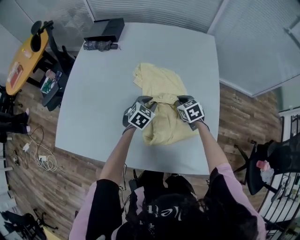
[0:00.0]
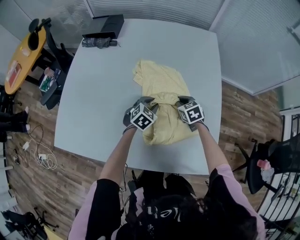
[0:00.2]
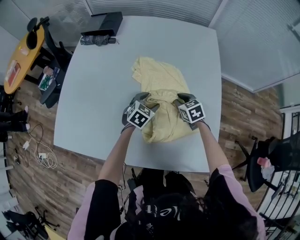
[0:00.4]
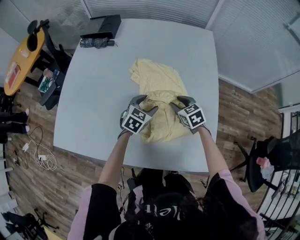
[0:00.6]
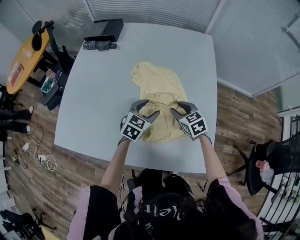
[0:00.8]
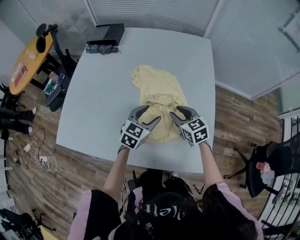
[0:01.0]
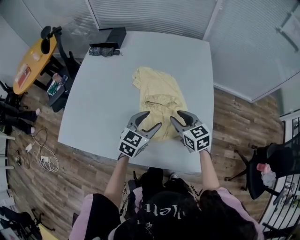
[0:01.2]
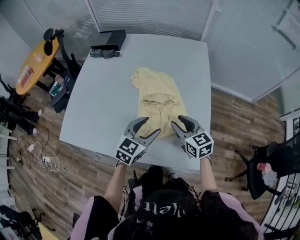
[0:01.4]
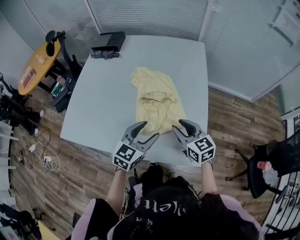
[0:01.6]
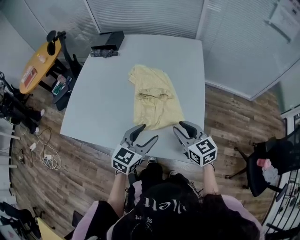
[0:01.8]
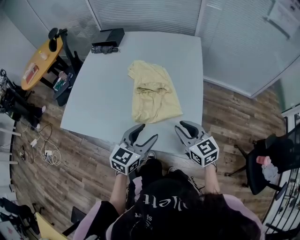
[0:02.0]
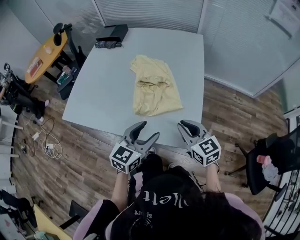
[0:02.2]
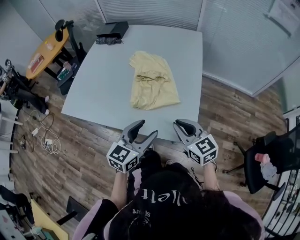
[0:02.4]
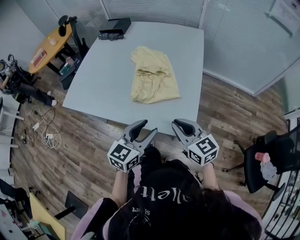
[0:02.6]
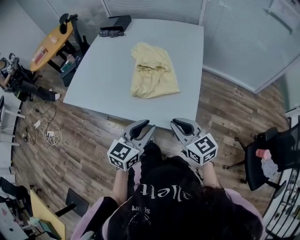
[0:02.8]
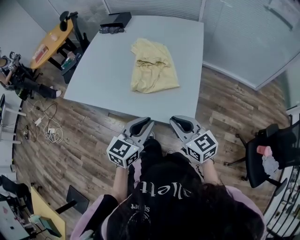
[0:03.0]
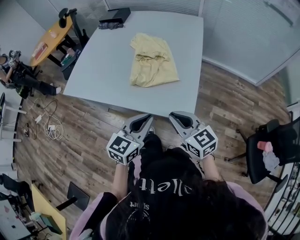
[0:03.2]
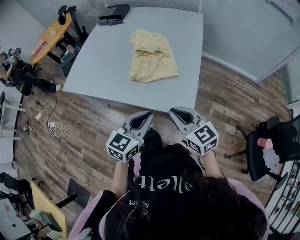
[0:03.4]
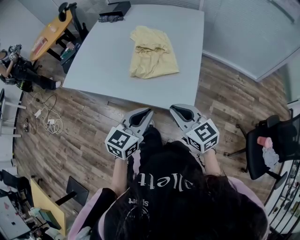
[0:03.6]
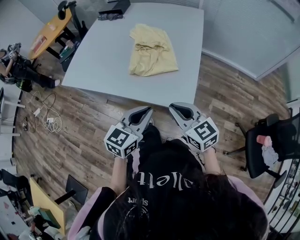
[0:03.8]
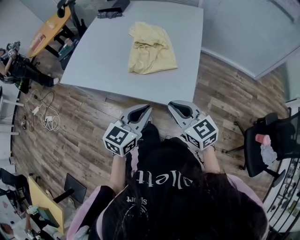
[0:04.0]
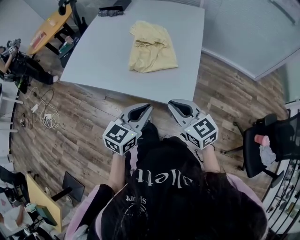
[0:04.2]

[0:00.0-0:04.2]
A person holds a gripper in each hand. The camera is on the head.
0:00.0 to 0:01.4: The grippers both shift backward and upward by about 20 cm. The left gripper swivels about 20 degrees, and opens its fingers; the right gripper changes its angle by some 30 degrees, and opens up.
0:01.4 to 0:02.8: The two grippers go about 25 cm backward. The right gripper closes. The left gripper closes up.
0:02.8 to 0:04.2: There are only small adjustments of the grippers.

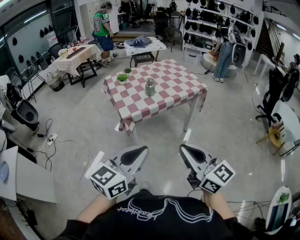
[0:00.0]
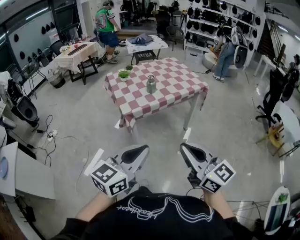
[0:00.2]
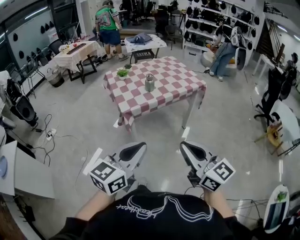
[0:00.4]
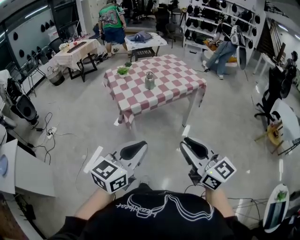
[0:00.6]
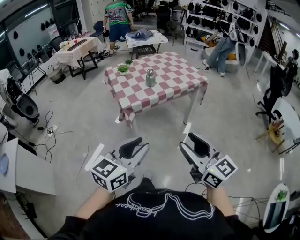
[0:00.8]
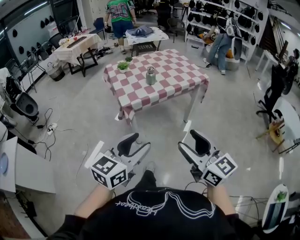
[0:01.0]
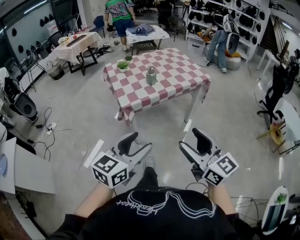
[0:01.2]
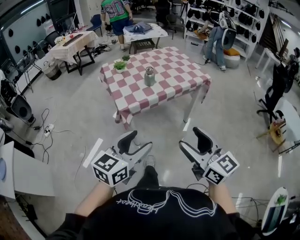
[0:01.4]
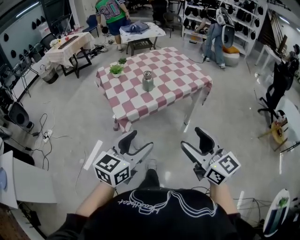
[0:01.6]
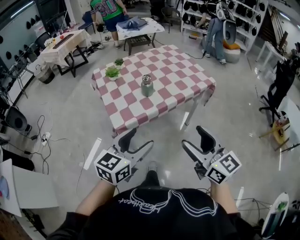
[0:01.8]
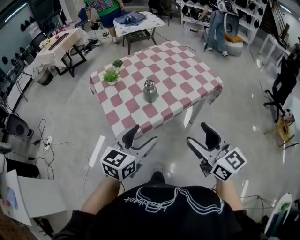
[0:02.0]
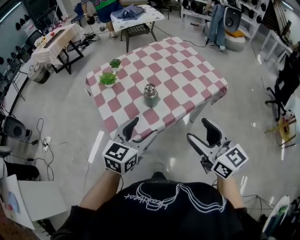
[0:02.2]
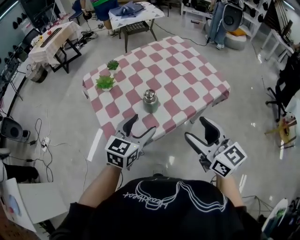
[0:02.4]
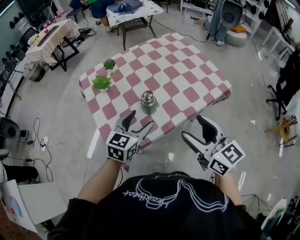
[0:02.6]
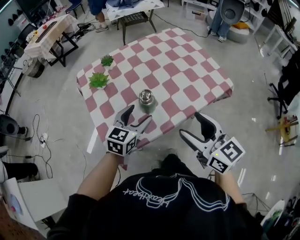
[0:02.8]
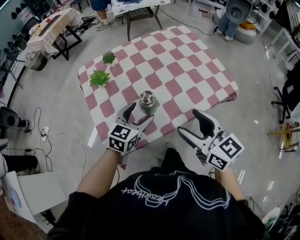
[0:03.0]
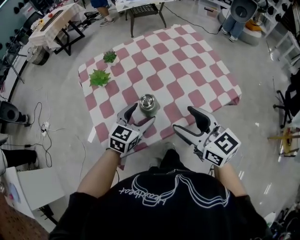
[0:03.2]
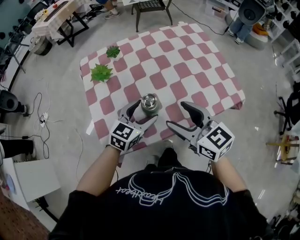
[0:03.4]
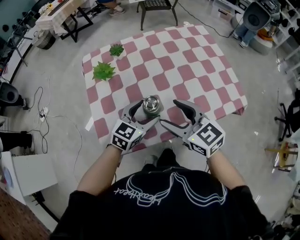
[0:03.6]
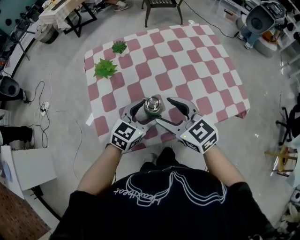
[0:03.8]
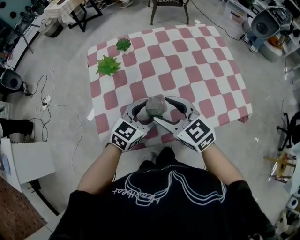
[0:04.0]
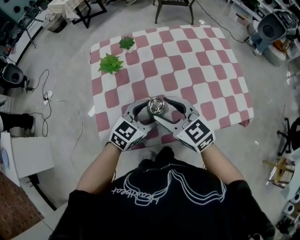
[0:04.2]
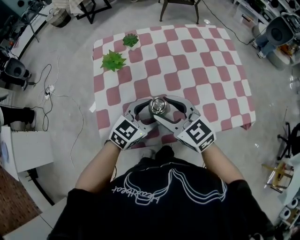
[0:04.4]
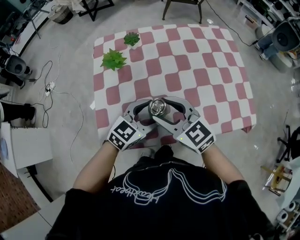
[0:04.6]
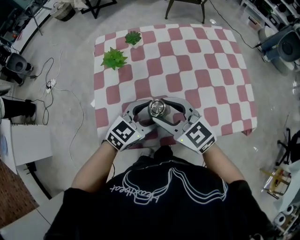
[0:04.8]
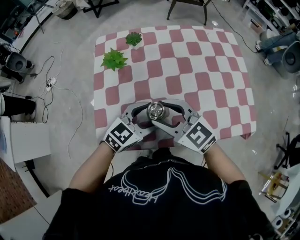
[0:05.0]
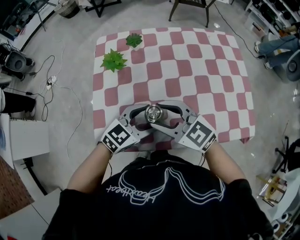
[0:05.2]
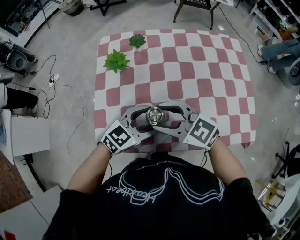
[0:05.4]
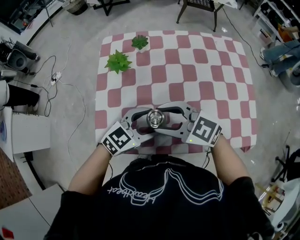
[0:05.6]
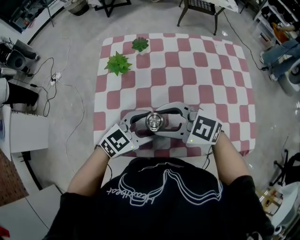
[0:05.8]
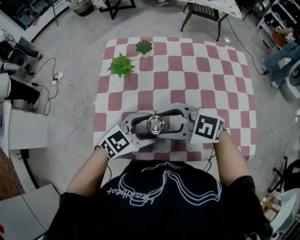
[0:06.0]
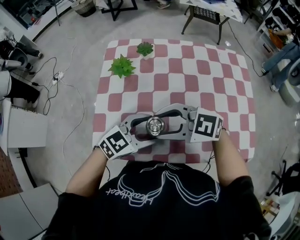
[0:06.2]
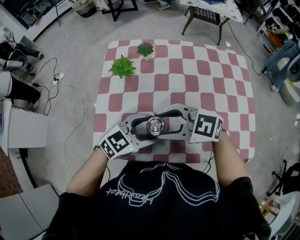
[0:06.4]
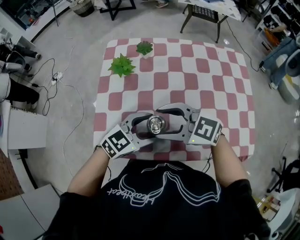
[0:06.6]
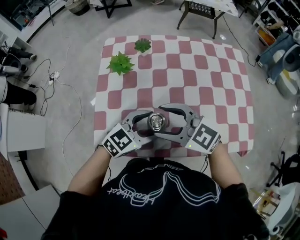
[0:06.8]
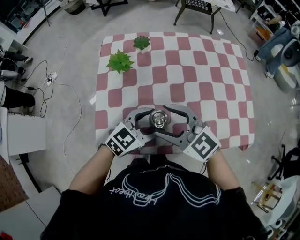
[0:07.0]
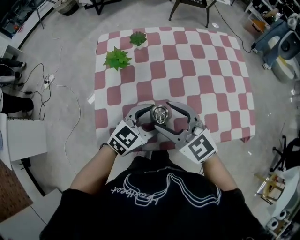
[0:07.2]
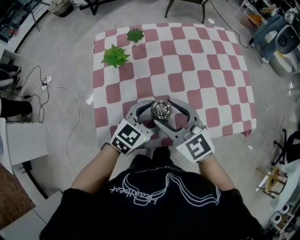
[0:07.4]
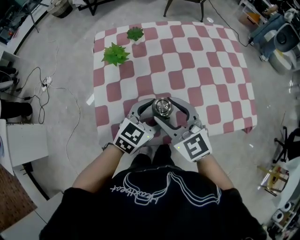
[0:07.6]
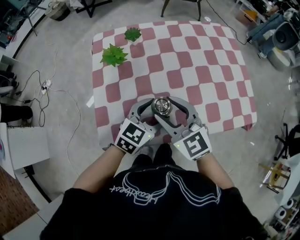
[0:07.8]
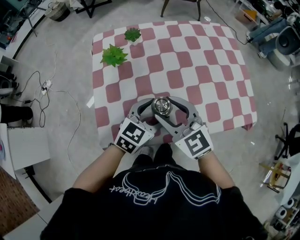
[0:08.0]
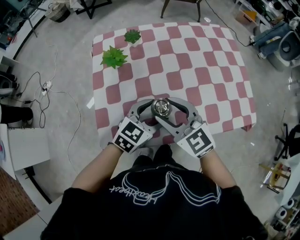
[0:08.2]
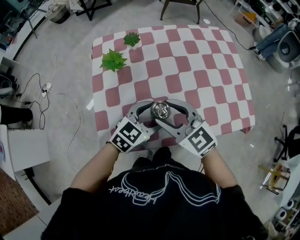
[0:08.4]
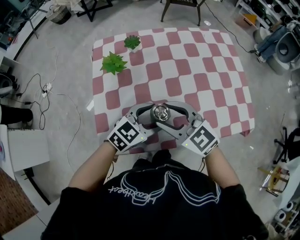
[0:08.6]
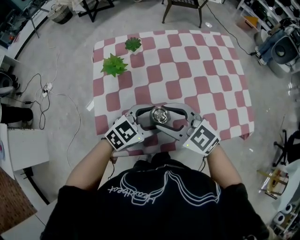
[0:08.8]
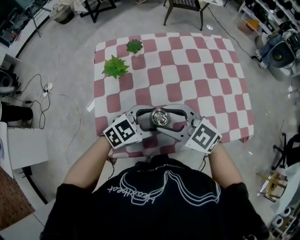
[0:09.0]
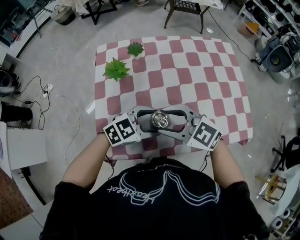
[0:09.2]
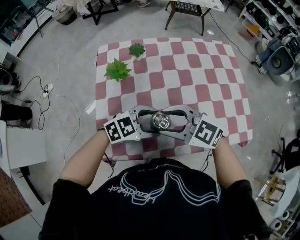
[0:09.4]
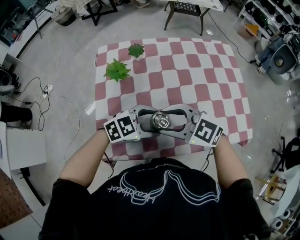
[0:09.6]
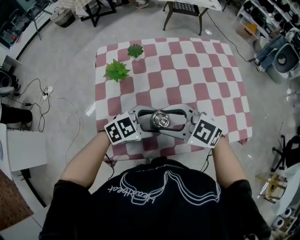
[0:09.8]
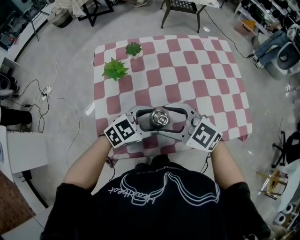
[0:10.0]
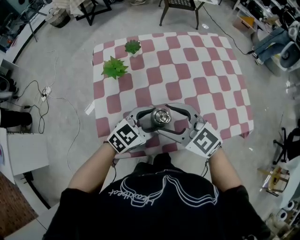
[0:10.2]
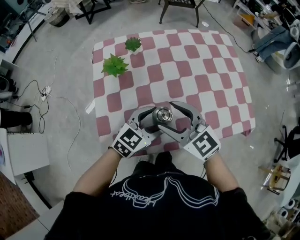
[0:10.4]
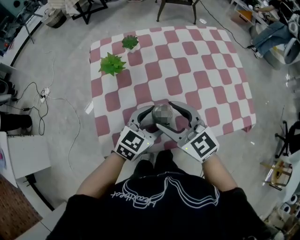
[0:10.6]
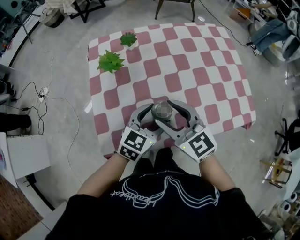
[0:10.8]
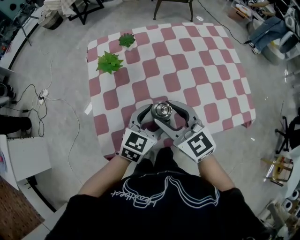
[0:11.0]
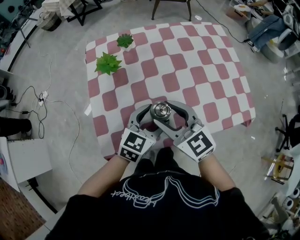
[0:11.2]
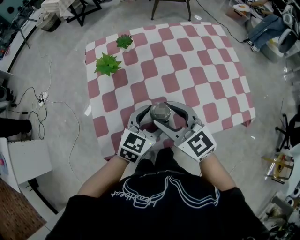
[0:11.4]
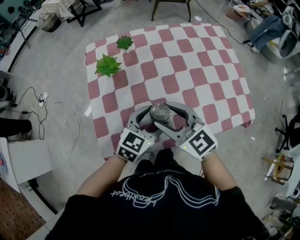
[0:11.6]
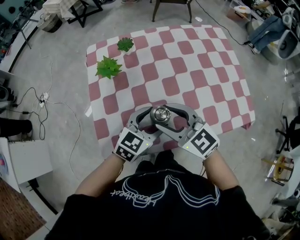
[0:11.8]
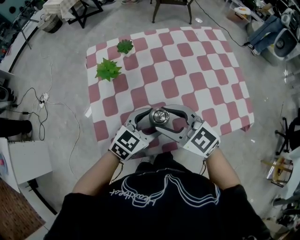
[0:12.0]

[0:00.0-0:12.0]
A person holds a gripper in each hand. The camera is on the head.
0:00.0 to 0:01.6: The left gripper moves forward and downward, some 15 cm, and opens up; the right gripper goes roughly 10 cm forward, and opens its fingers.
0:01.6 to 0:03.0: Both grippers move forward, approximately 40 cm.
0:03.0 to 0:04.4: The right gripper is displaced forward, to the left and downward by about 20 cm, and rotates about 30 degrees.
0:04.4 to 0:06.0: The right gripper changes its angle by about 50 degrees.
0:06.0 to 0:07.6: The right gripper turns by some 50 degrees.
0:07.6 to 0:09.0: The right gripper turns by some 20 degrees. Meanwhile the left gripper changes its angle by roughly 20 degrees.
0:09.0 to 0:10.4: The grippers make only small movements.
0:10.4 to 0:12.0: The grippers make only small movements.

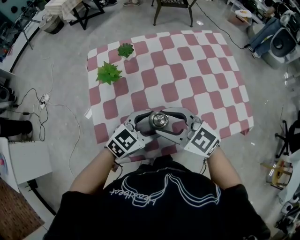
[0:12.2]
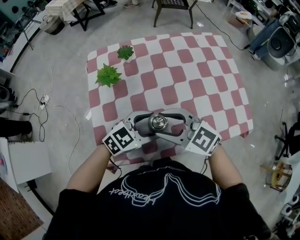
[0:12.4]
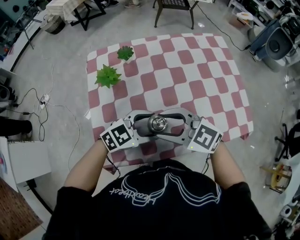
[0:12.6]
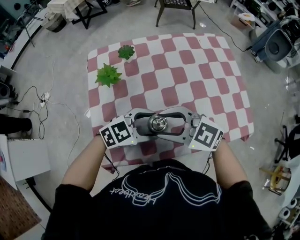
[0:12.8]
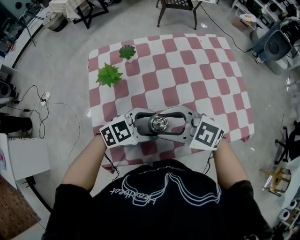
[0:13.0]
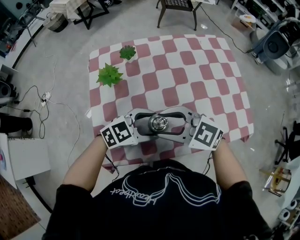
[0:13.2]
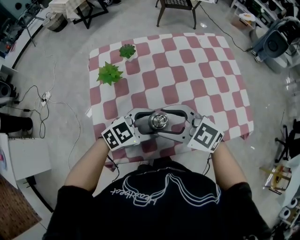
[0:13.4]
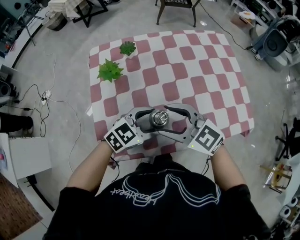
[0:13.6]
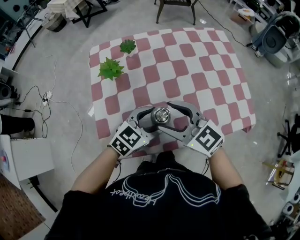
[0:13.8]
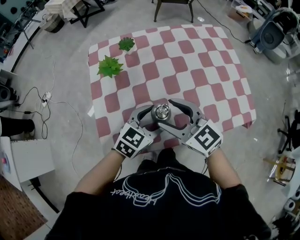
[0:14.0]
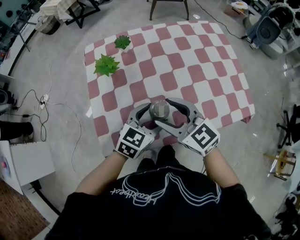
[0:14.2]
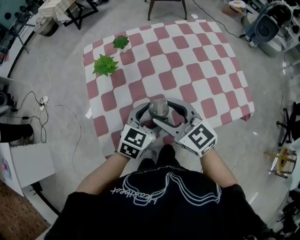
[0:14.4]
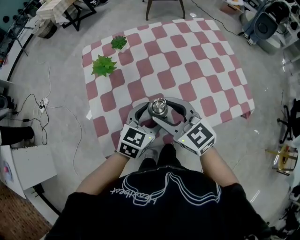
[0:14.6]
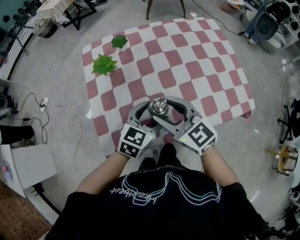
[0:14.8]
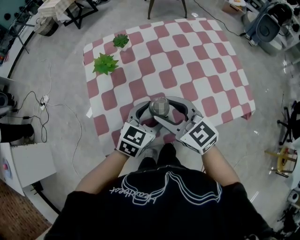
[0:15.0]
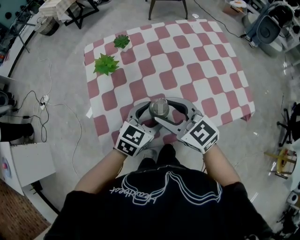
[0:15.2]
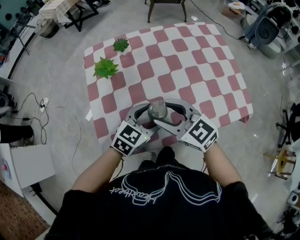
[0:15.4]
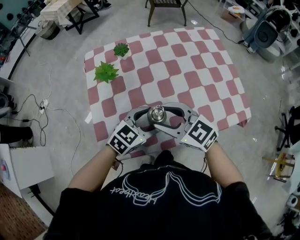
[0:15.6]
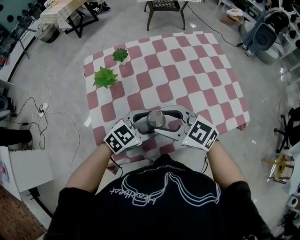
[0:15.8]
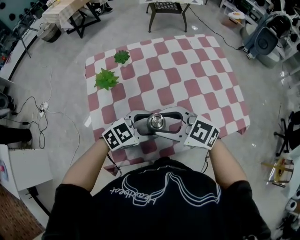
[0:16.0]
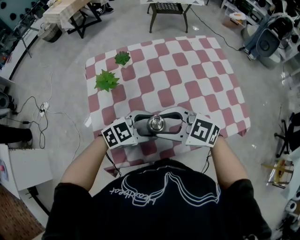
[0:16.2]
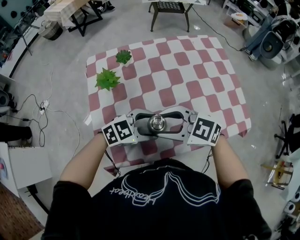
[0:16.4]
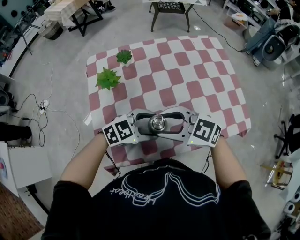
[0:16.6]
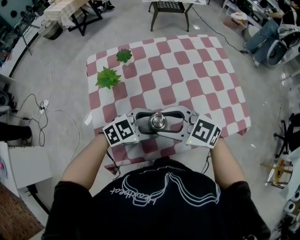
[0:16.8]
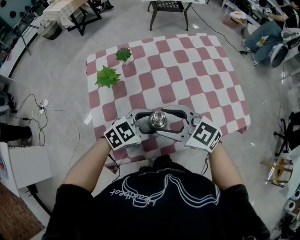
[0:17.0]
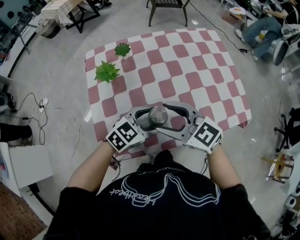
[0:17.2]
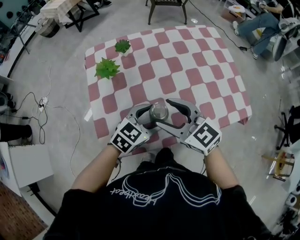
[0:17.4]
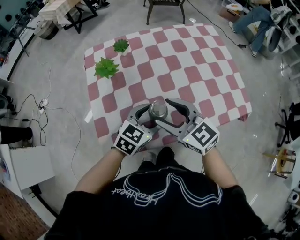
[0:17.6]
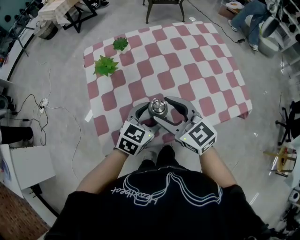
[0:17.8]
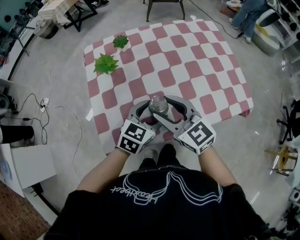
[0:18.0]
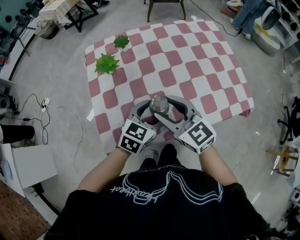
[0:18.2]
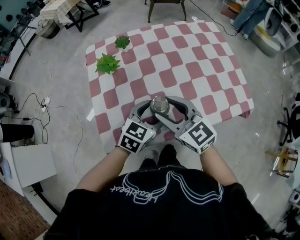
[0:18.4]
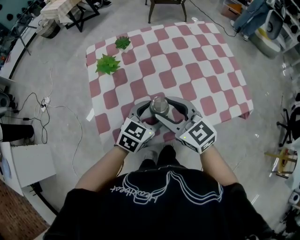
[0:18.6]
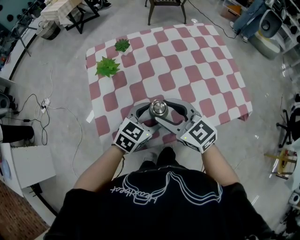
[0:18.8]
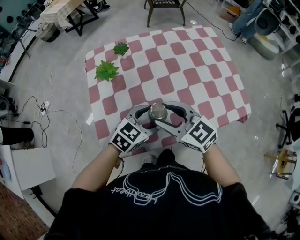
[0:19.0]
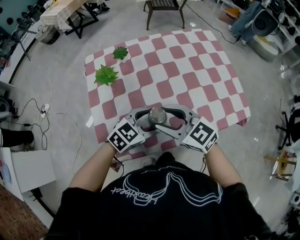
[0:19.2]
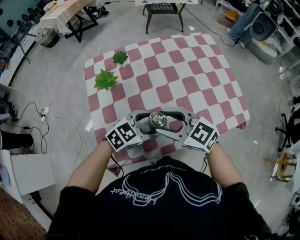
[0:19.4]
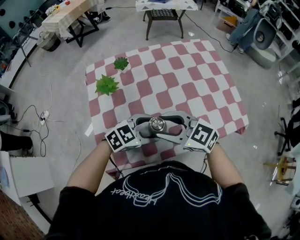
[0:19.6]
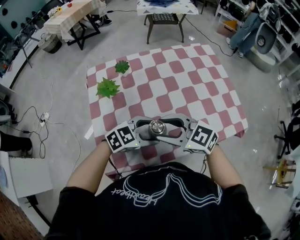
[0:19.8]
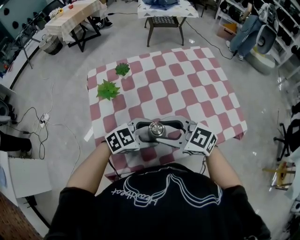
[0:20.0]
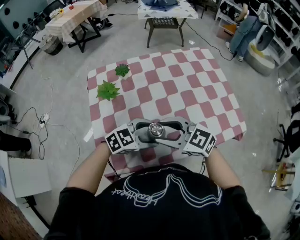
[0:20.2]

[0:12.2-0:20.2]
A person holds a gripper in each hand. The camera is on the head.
0:12.2 to 0:15.4: The grippers stay close to where they were, moving slightly.
0:15.4 to 0:17.0: The left gripper swivels roughly 20 degrees.
0:17.0 to 0:18.6: The left gripper turns by approximately 30 degrees; the right gripper changes its angle by approximately 20 degrees.
0:18.6 to 0:20.2: The right gripper rotates roughly 20 degrees. The left gripper swivels about 30 degrees.
